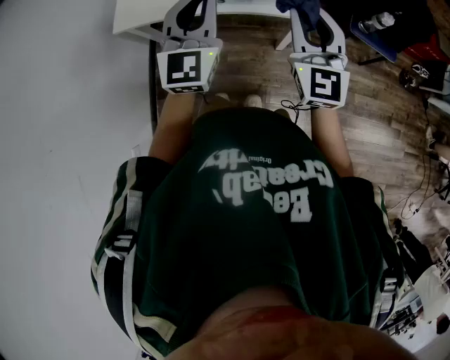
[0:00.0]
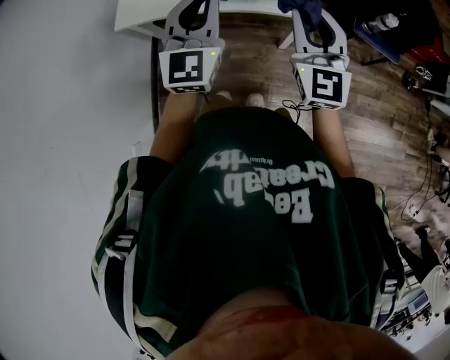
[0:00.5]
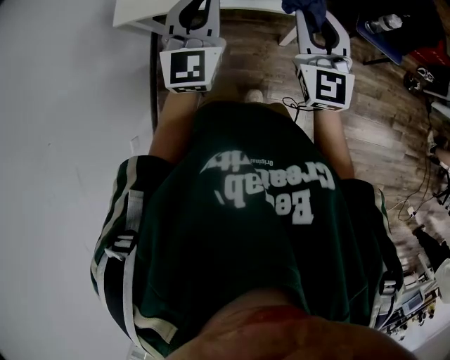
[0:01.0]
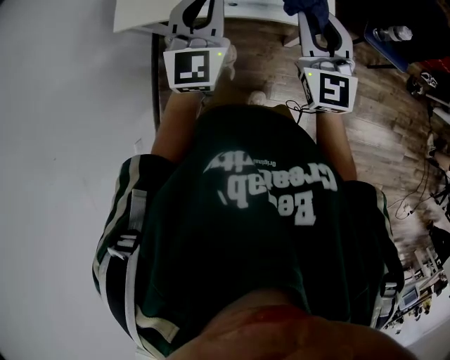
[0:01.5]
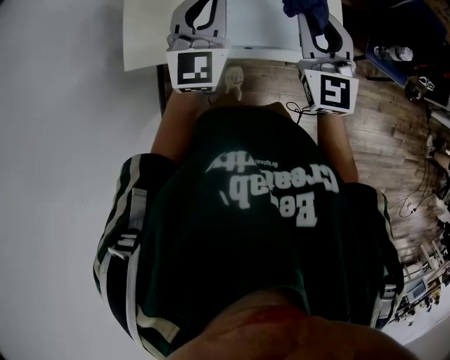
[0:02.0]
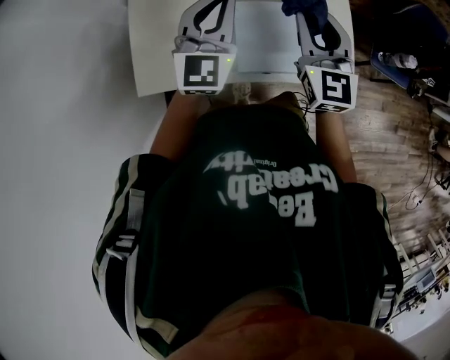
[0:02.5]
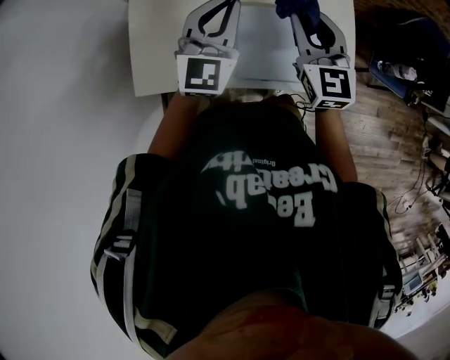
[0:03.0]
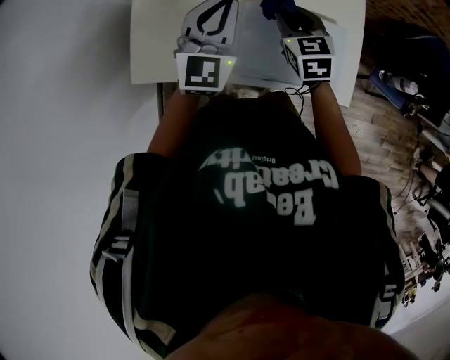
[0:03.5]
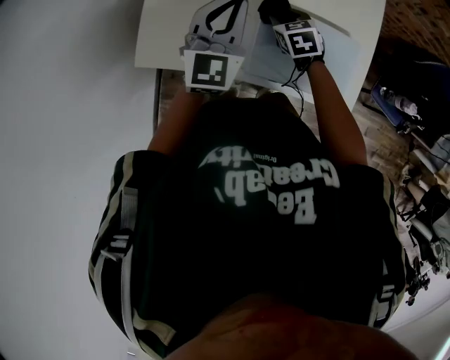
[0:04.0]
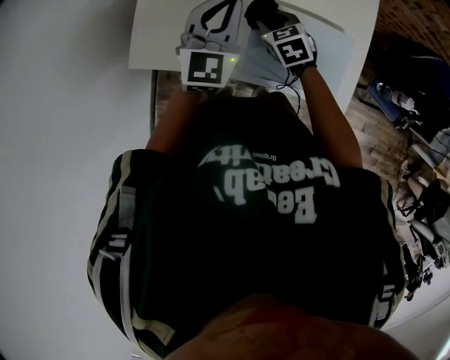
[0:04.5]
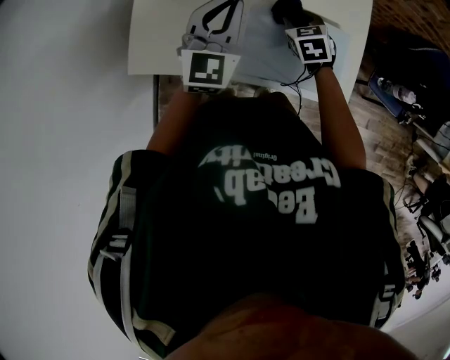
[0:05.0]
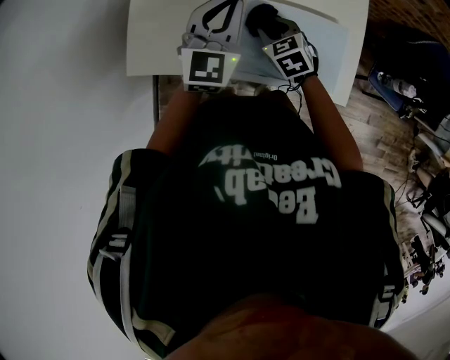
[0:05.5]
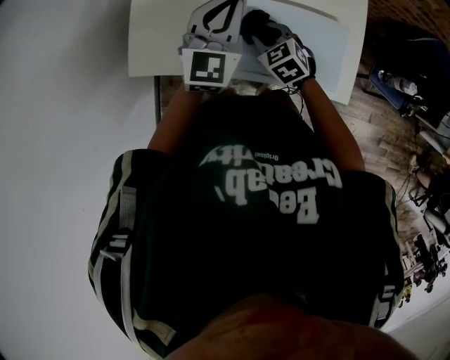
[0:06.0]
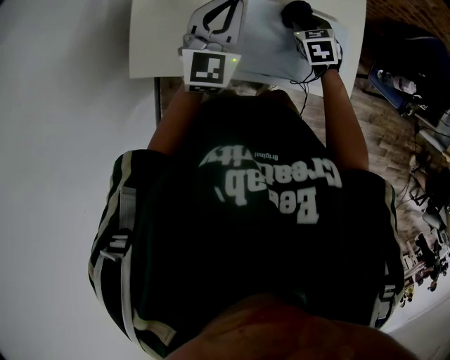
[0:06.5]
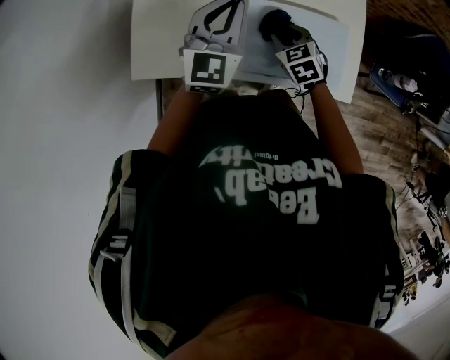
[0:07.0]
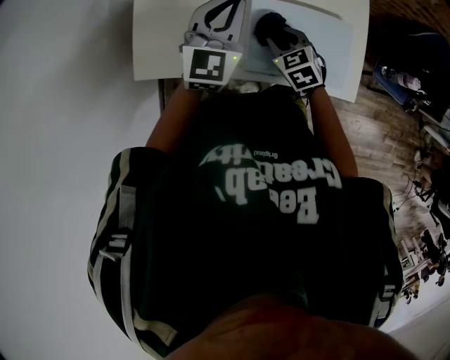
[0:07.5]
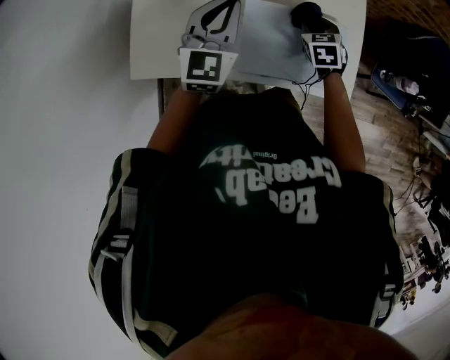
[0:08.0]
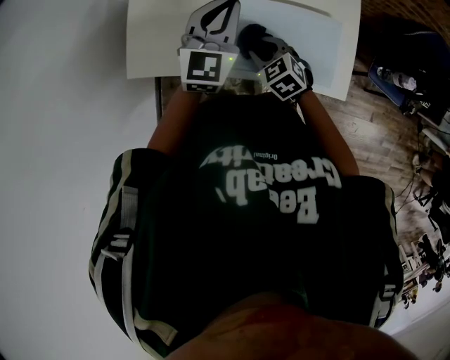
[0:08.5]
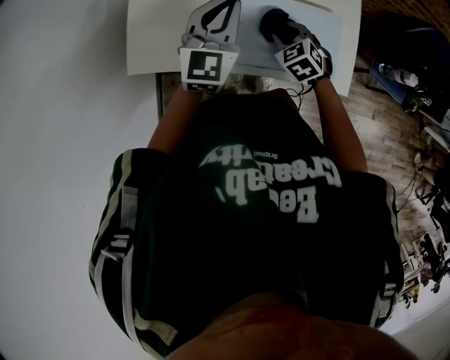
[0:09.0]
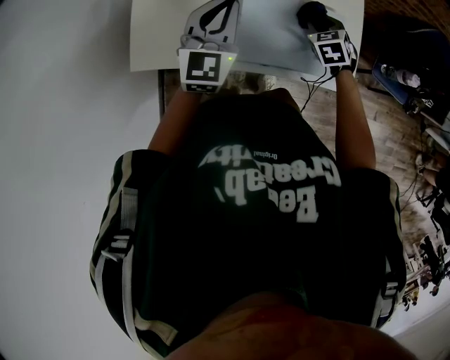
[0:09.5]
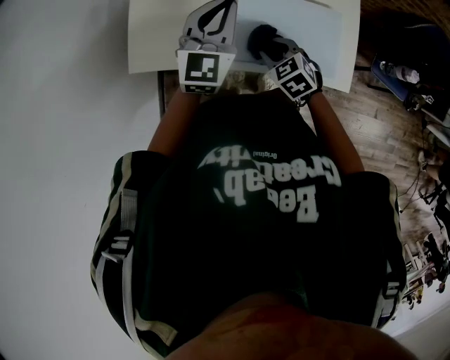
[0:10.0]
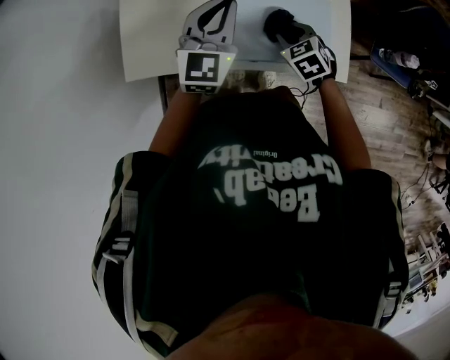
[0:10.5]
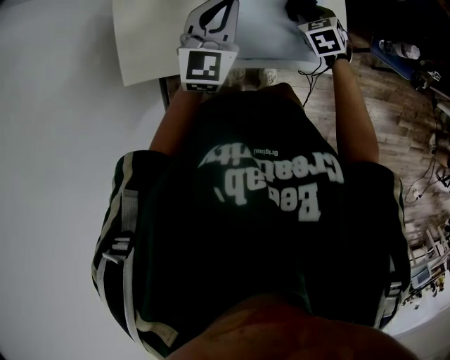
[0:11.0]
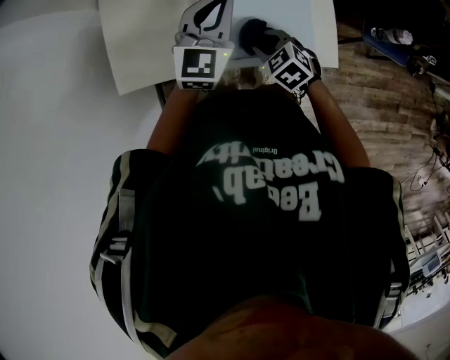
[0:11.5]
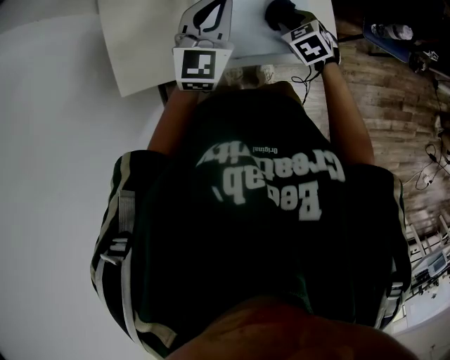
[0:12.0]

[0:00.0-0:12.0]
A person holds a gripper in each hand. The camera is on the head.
0:00.0 to 0:02.0: The two grippers go some 25 cm forward.
0:02.0 to 0:04.0: The right gripper goes roughly 35 cm downward, forward and to the left, and tilts its fingers roughly 50 degrees downward. The left gripper heads forward, to the left and downward, covering approximately 15 cm.
0:04.0 to 0:06.0: The right gripper is displaced backward by approximately 10 cm, and reaches approximately 5 cm to the right, then returns.
0:06.0 to 0:08.0: The right gripper goes left and right, some 15 cm each way, reversing 2 times, and rotates approximately 30 degrees.
0:08.0 to 0:10.0: The right gripper swings left and right, approximately 15 cm each way, with 2 reversals, and changes its angle by roughly 30 degrees.
0:10.0 to 0:12.0: The left gripper travels to the right by about 10 cm; the right gripper moves left and right over roughly 15 cm, changing direction 2 times.

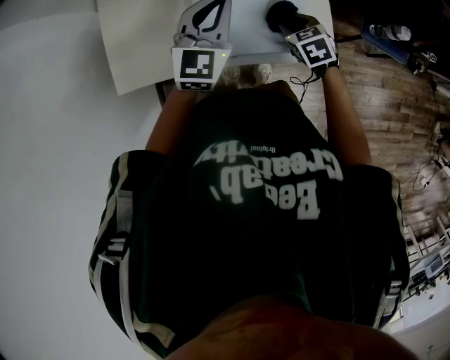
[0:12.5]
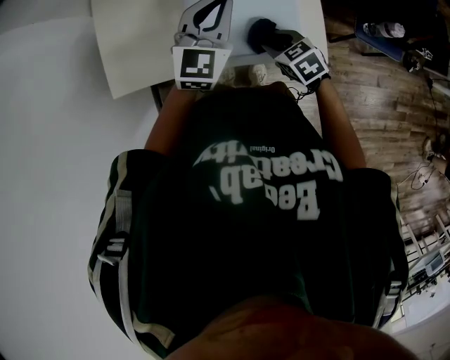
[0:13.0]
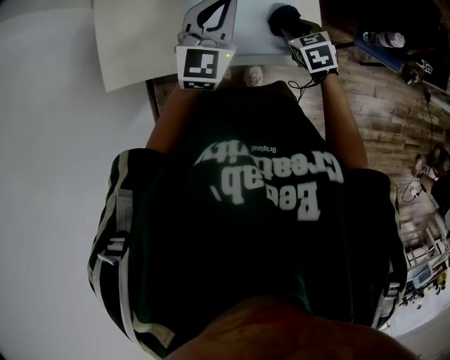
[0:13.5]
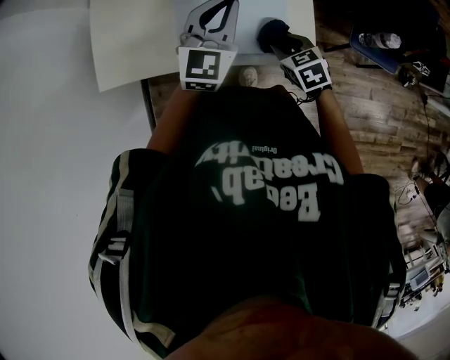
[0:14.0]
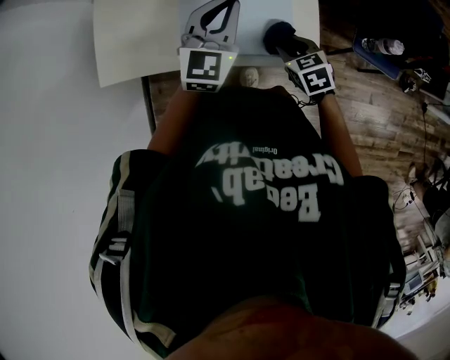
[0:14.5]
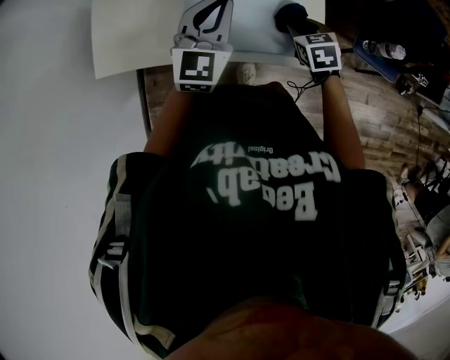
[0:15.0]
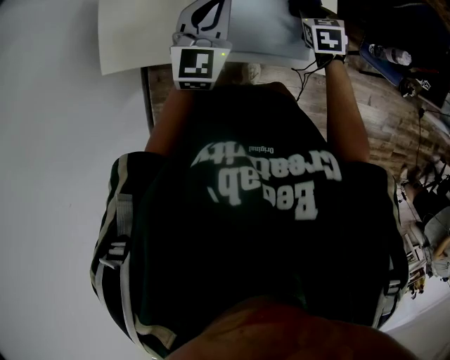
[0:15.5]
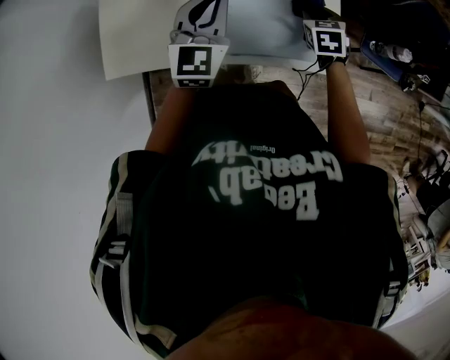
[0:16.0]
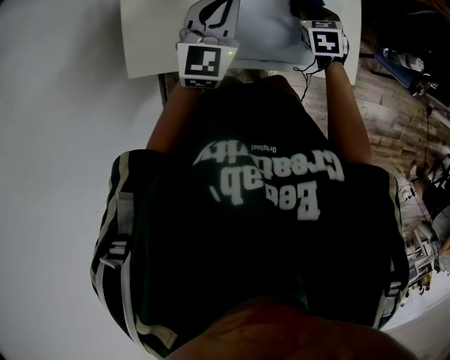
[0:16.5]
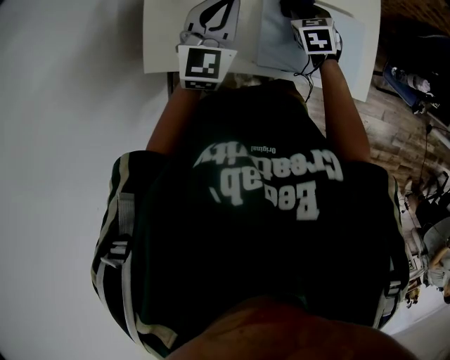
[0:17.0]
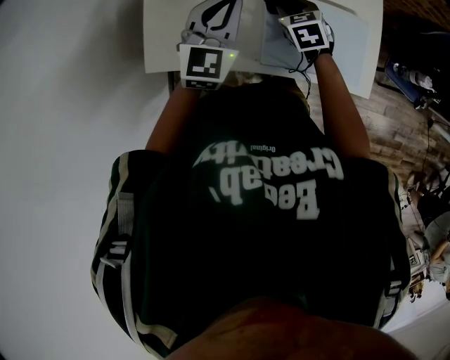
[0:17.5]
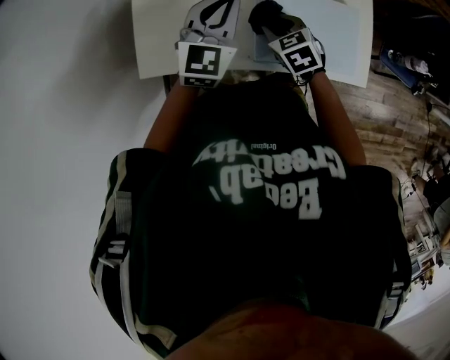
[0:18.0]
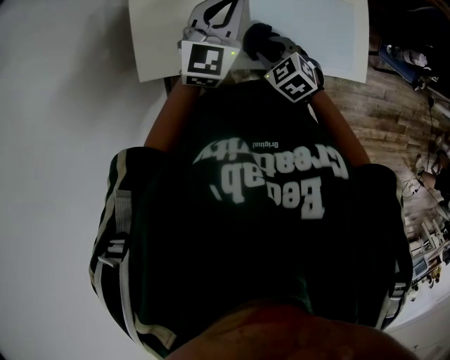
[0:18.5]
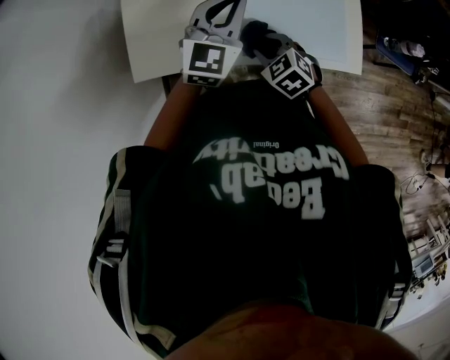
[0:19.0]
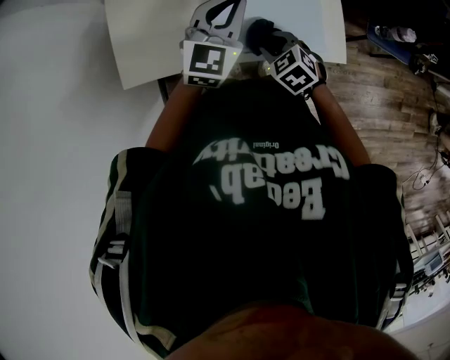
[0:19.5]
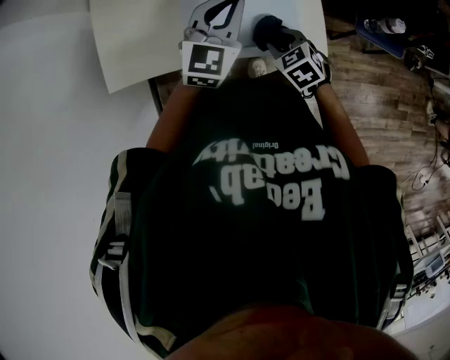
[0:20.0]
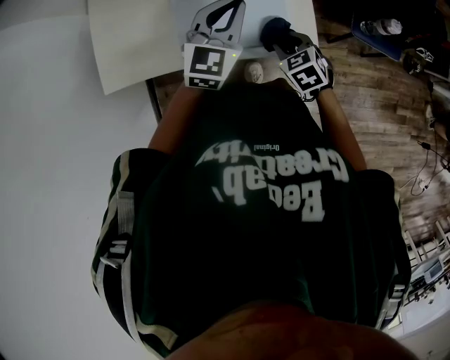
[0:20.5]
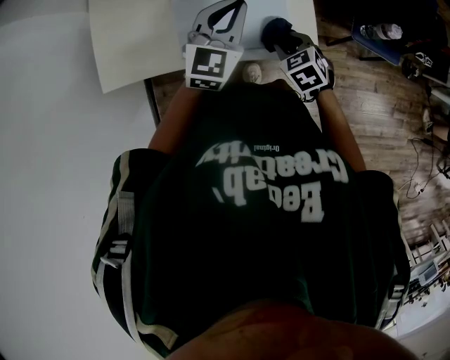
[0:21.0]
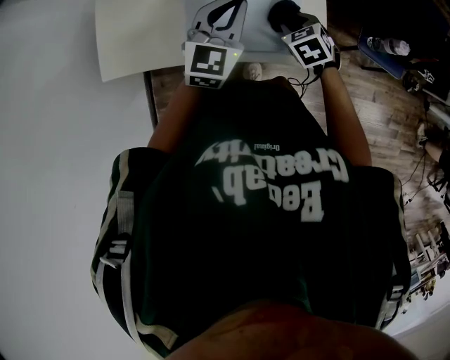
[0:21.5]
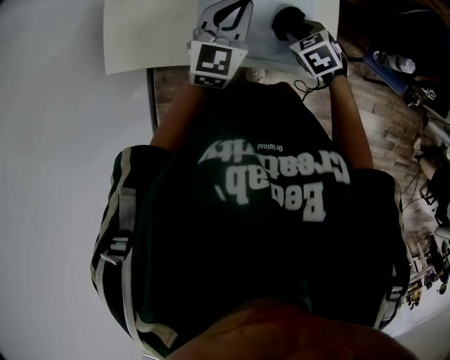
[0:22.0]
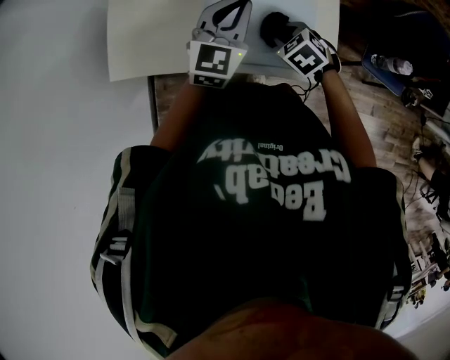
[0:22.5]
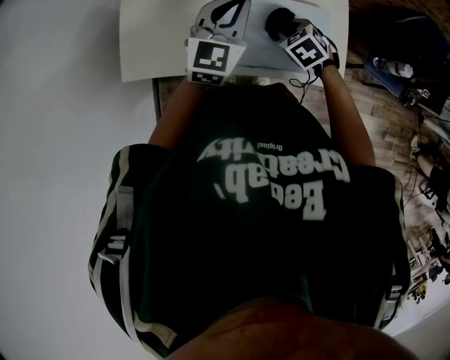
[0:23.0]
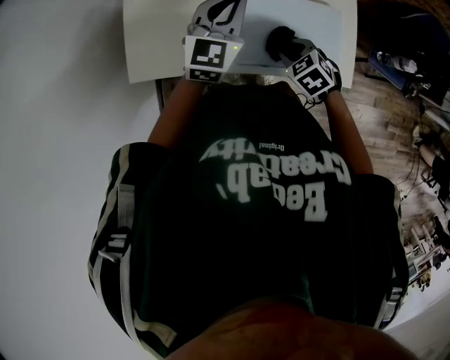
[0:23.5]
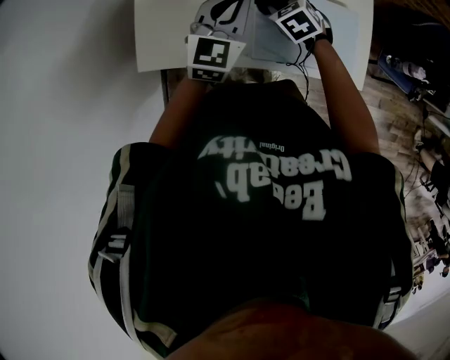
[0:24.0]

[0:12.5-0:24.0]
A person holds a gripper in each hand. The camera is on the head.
0:12.5 to 0:14.5: The left gripper goes approximately 5 cm to the right. Meanwhile the right gripper heads backward, covering roughly 5 cm, and travels to the right and back again, some 5 cm each way.
0:14.5 to 0:16.5: The right gripper moves forward and to the left, roughly 15 cm; the left gripper shifts roughly 15 cm to the left.
0:16.5 to 0:18.5: The right gripper is displaced to the left and backward by some 25 cm, and turns by approximately 30 degrees.
0:18.5 to 0:20.0: Both grippers travel together to the right, approximately 20 cm.
0:20.0 to 0:22.0: The right gripper is displaced forward by some 10 cm.
0:22.0 to 0:24.0: The left gripper heads to the left, covering some 15 cm; the right gripper travels to the left and forward by about 20 cm.

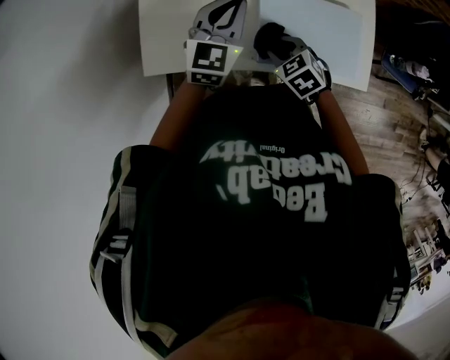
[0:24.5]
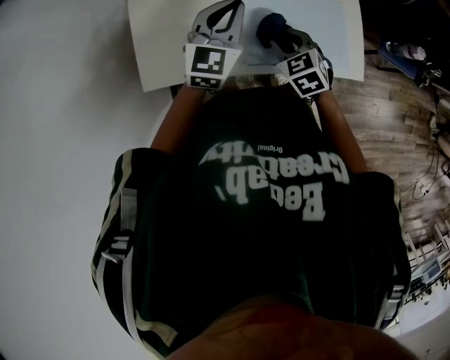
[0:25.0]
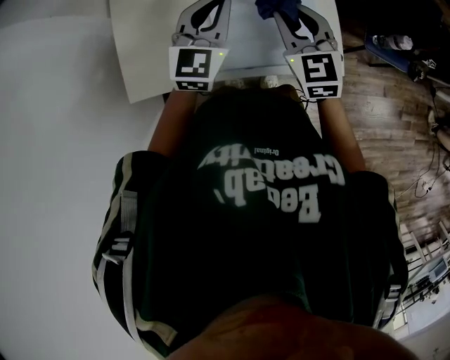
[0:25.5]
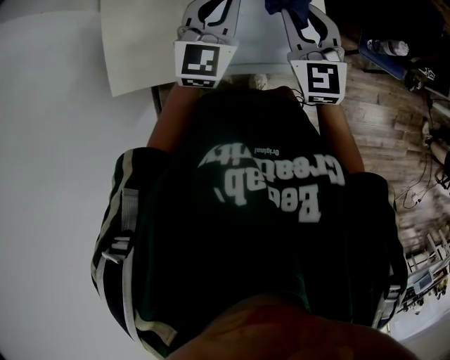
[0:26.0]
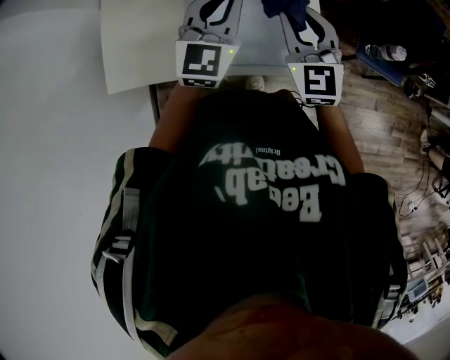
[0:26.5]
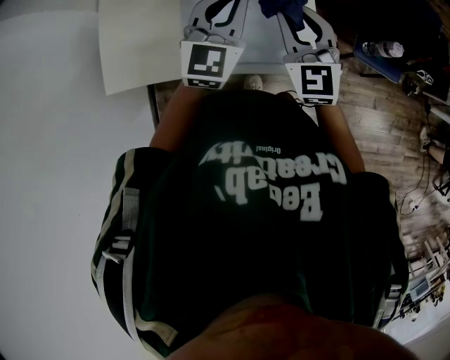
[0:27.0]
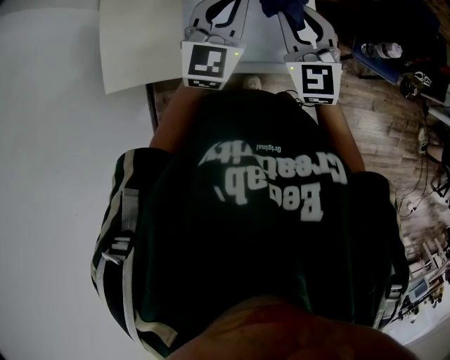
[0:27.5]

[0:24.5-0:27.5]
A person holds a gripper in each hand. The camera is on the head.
0:24.5 to 0:26.0: The right gripper is displaced upward and to the right by approximately 30 cm, and tilts its fingers some 50 degrees upward, while the left gripper moves to the right and upward, approximately 20 cm.
0:26.0 to 0:27.5: The grippers stay close to where they were, moving slightly.
